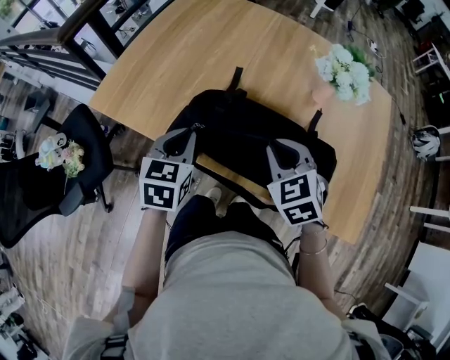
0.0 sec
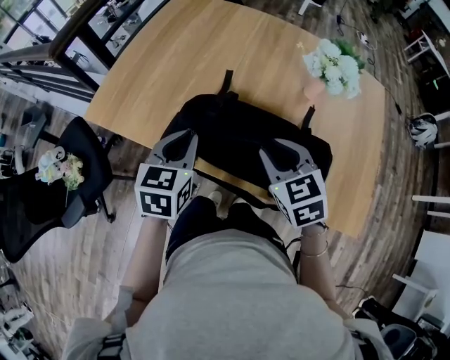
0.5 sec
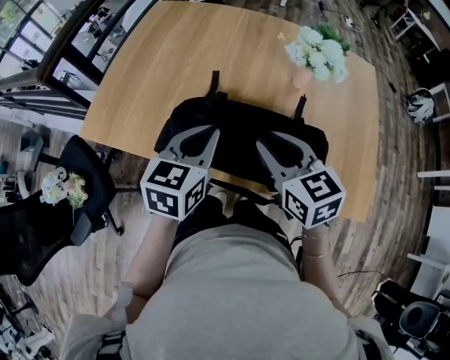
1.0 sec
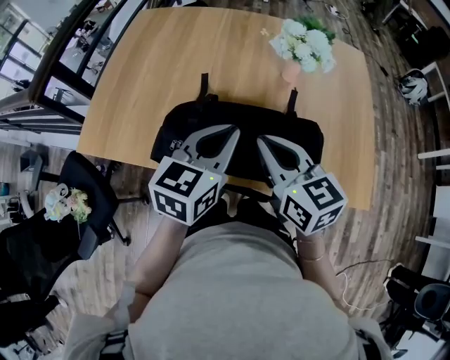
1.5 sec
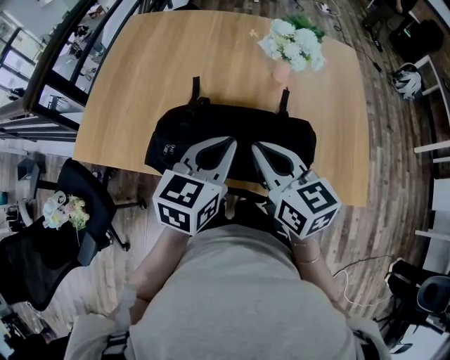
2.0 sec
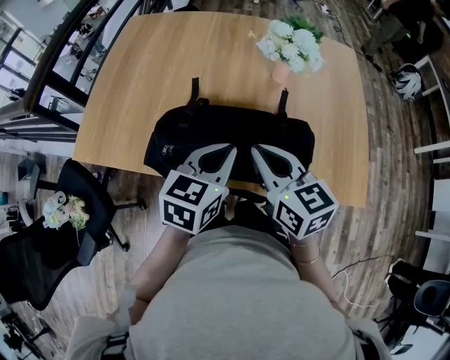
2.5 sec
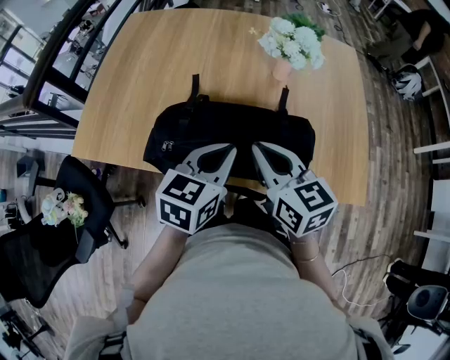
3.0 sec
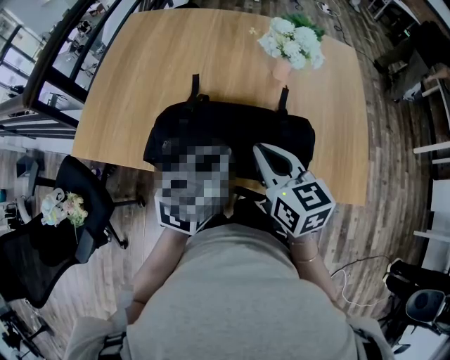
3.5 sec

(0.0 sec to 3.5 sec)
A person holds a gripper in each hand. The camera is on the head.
0.0 sec - 2.0 sec: The right gripper shifts approximately 5 cm upward, and rotates roughly 50 degrees, while the left gripper goes approximately 20 cm to the right and upward, and rotates some 30 degrees.
2.0 sec - 3.5 sec: The grippers move only a little.

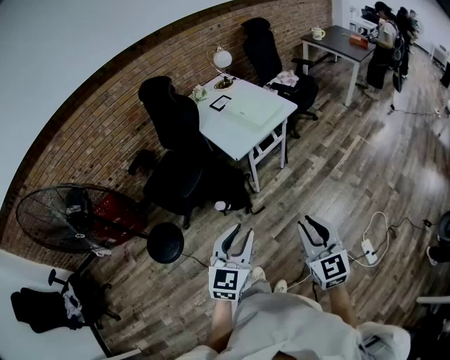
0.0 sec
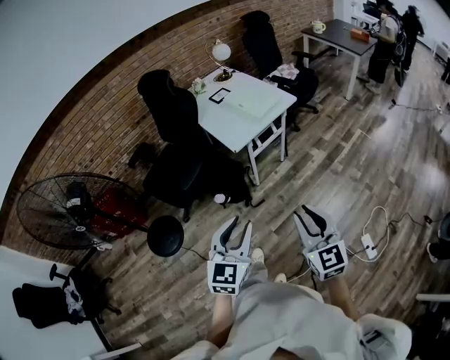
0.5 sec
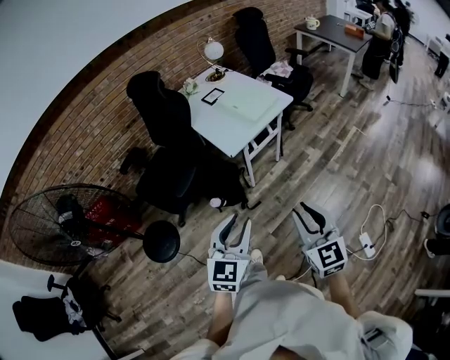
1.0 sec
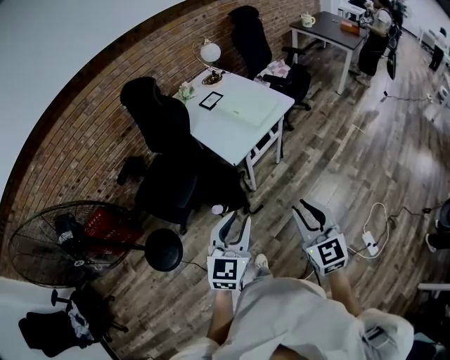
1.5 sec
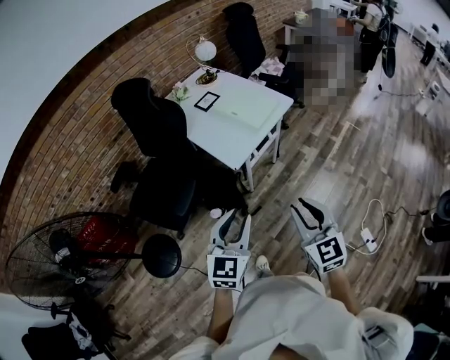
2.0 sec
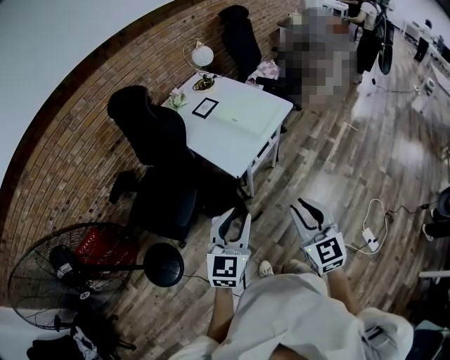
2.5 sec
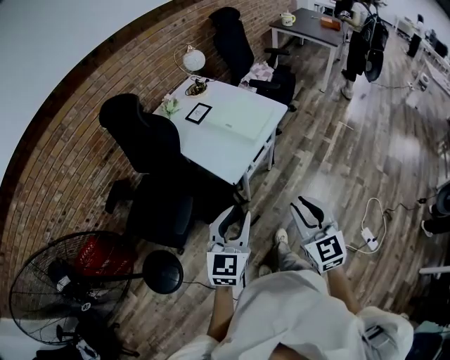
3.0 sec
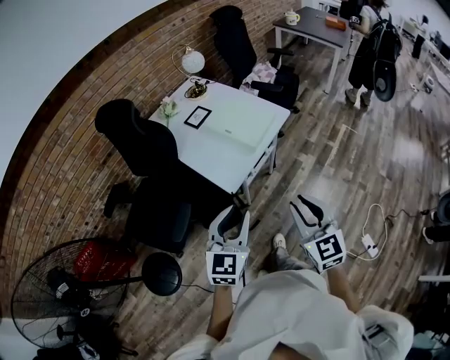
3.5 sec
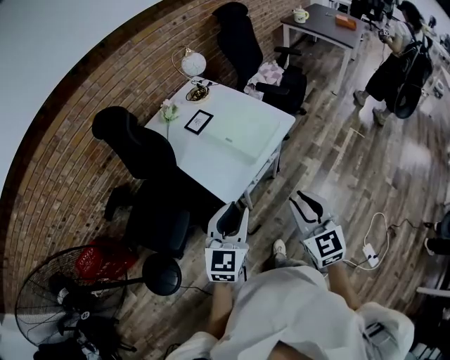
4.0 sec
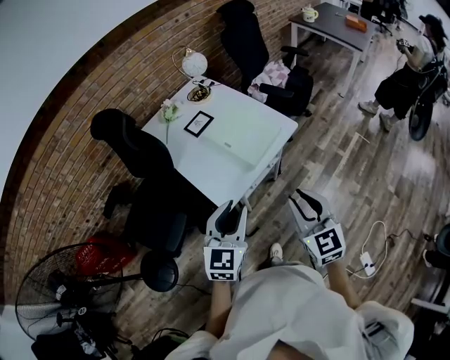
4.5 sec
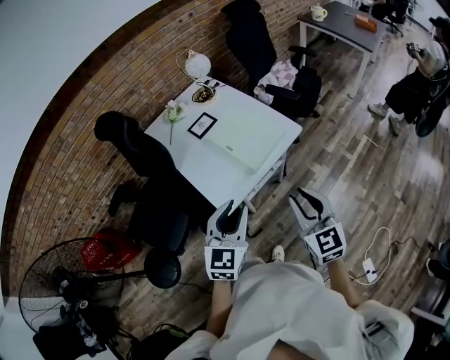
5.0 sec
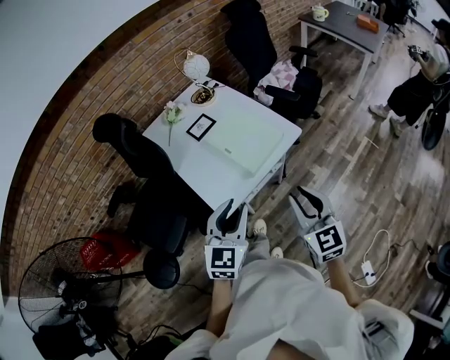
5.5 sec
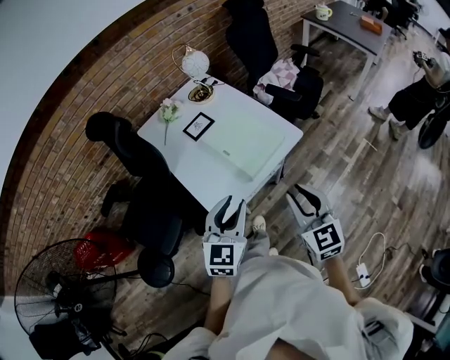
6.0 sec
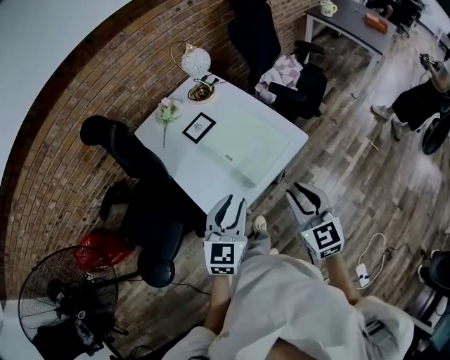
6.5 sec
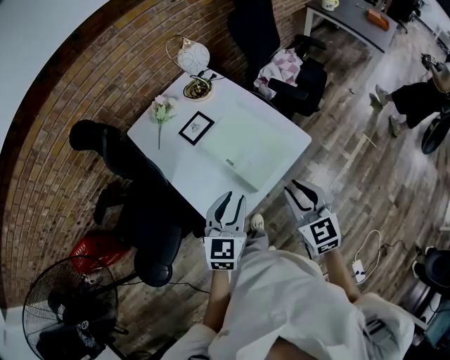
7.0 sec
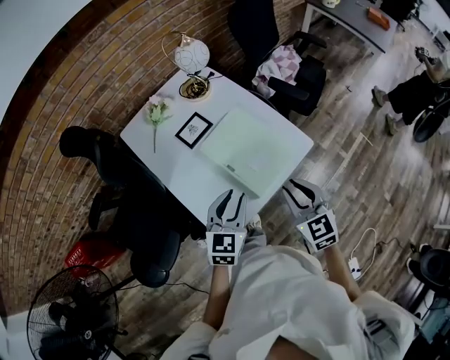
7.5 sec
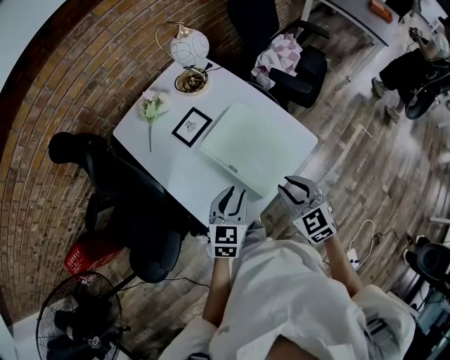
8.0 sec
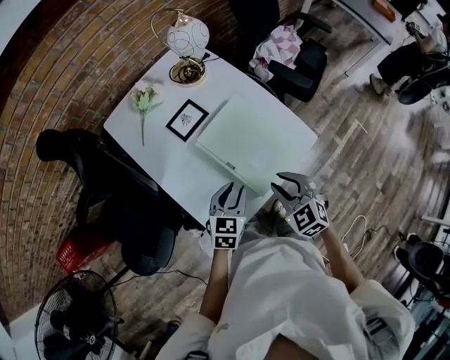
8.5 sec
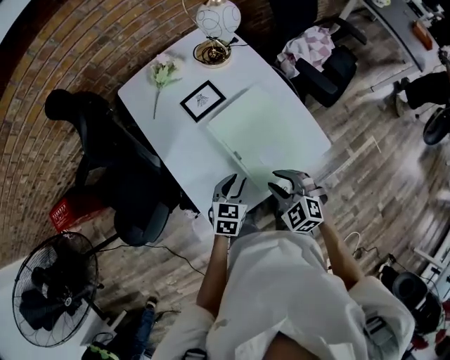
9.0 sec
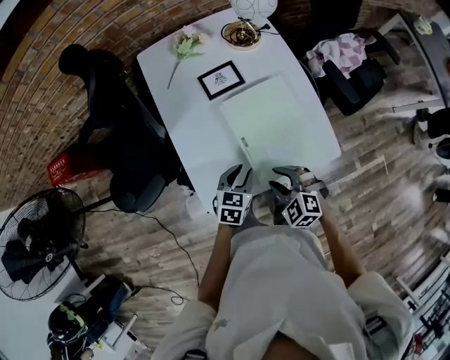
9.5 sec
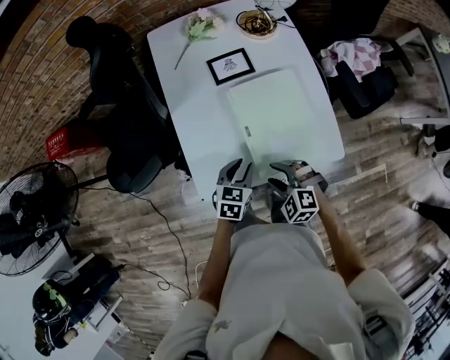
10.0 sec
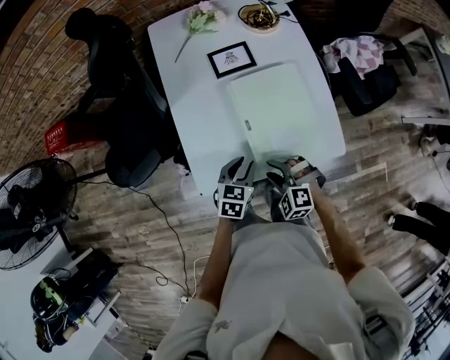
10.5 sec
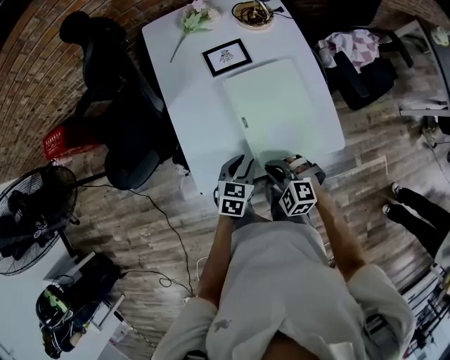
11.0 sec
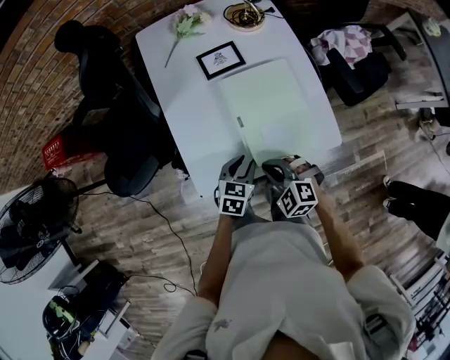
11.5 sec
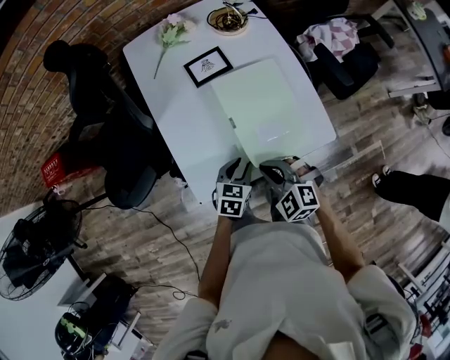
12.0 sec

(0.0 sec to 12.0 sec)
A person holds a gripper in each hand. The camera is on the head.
0.0 sec - 2.0 sec: Both grippers move forward, about 20 cm.
2.0 sec - 4.0 sec: The two grippers go roughly 20 cm forward.
4.0 sec - 6.0 sec: The grippers both shift forward and to the right by some 15 cm.
6.0 sec - 8.0 sec: Both grippers move forward and downward, some 25 cm. The right gripper swivels roughly 20 degrees.
8.0 sec - 10.0 sec: The two grippers go roughly 15 cm downward. The right gripper turns by approximately 70 degrees, and opens. Meanwhile the left gripper changes its angle by about 30 degrees.
10.0 sec - 12.0 sec: The right gripper heads upward, covering about 5 cm, and closes.

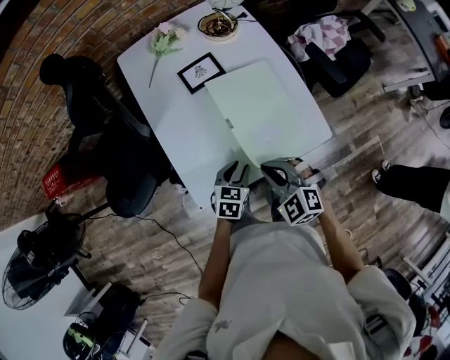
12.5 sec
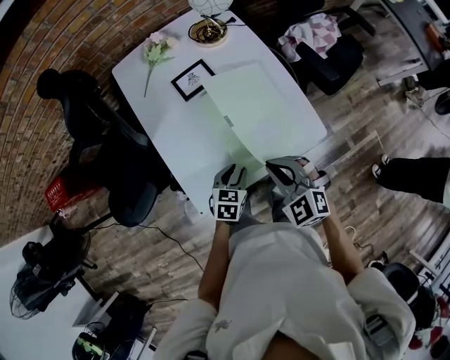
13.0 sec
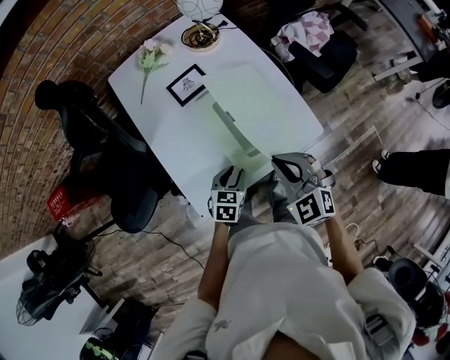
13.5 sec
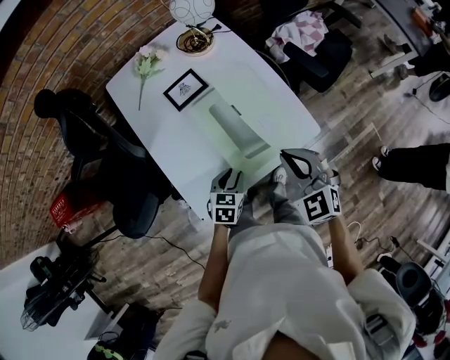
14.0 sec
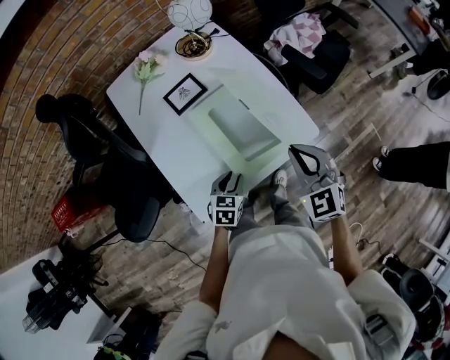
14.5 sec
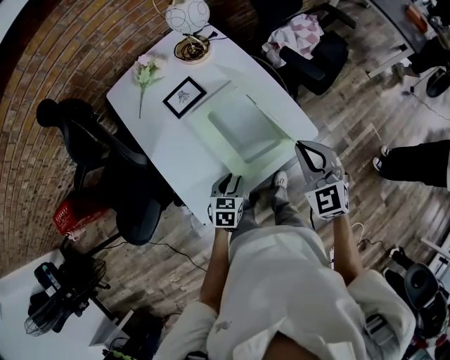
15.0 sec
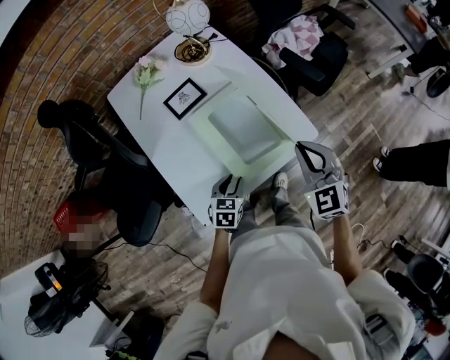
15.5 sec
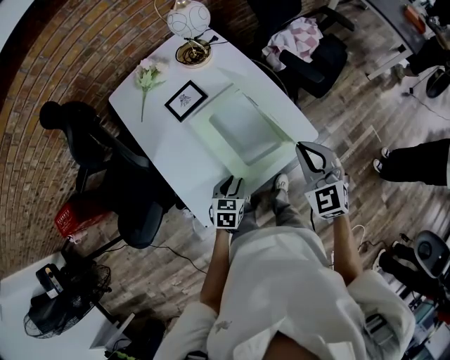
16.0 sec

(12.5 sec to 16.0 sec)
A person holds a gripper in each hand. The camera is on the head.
12.5 sec - 14.5 sec: The right gripper shifts some 15 cm to the right, upward and forward, and turns by roughly 30 degrees.
14.5 sec - 16.0 sec: The grippers make only small movements.

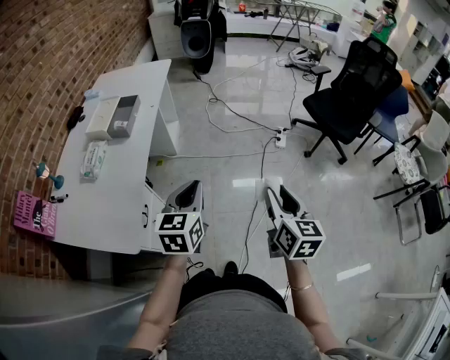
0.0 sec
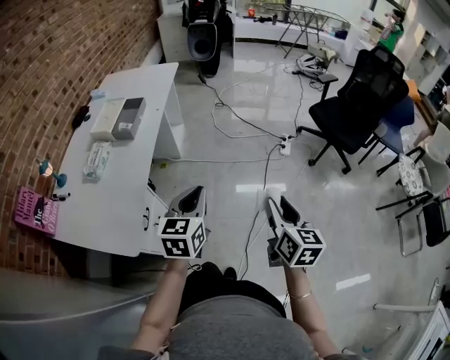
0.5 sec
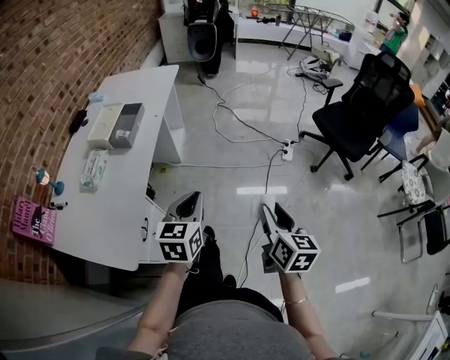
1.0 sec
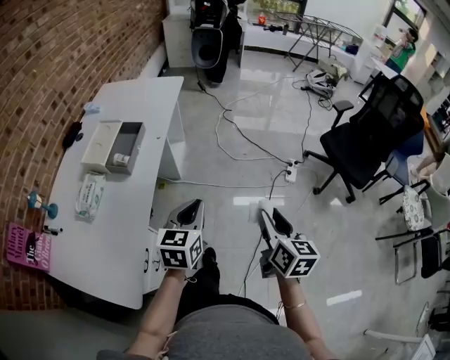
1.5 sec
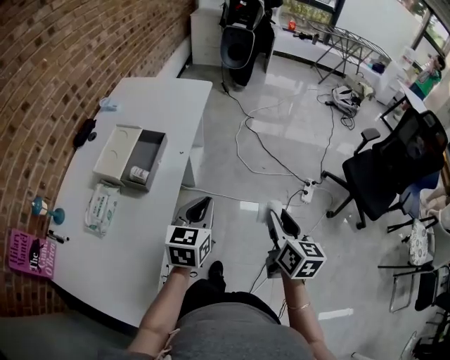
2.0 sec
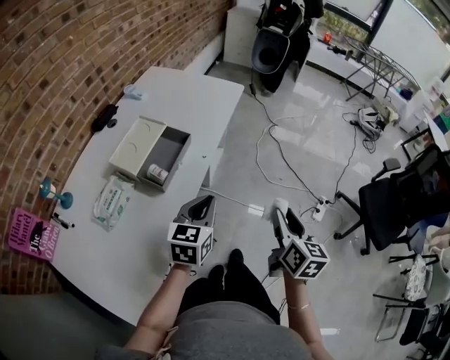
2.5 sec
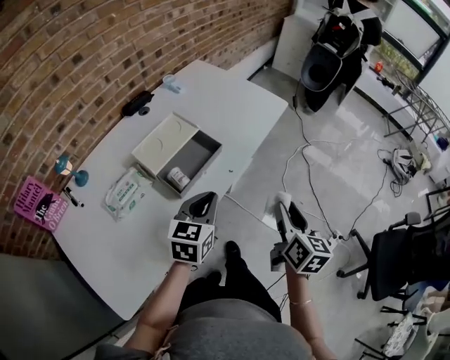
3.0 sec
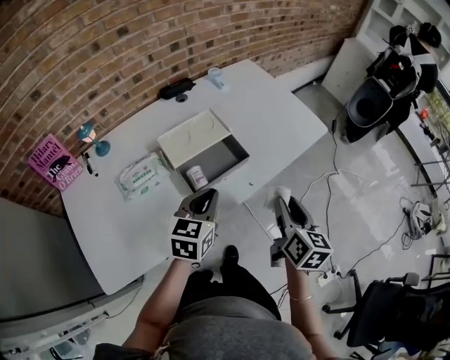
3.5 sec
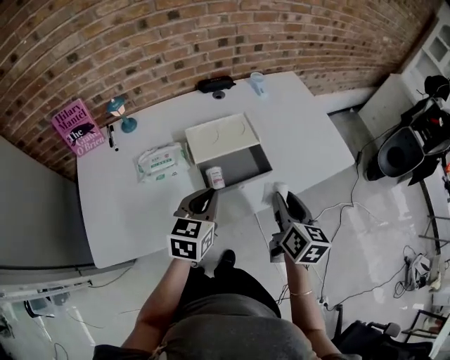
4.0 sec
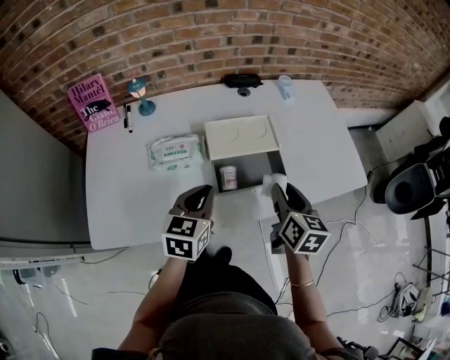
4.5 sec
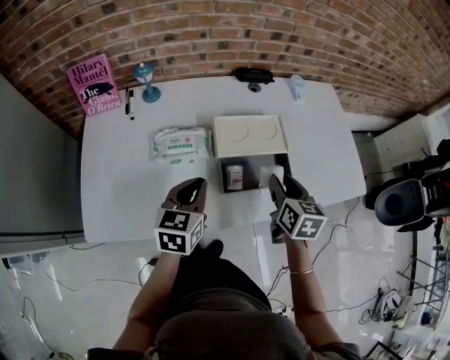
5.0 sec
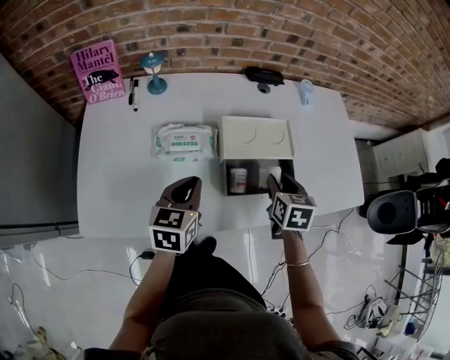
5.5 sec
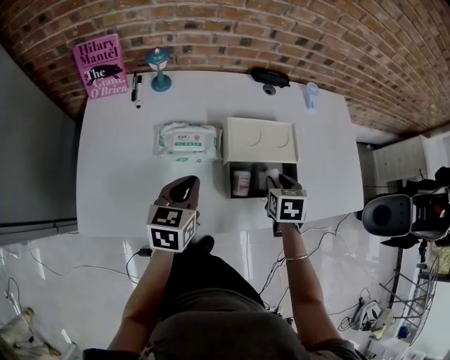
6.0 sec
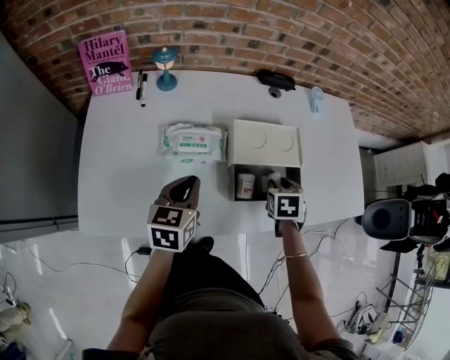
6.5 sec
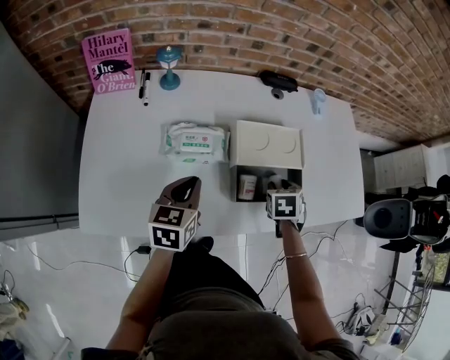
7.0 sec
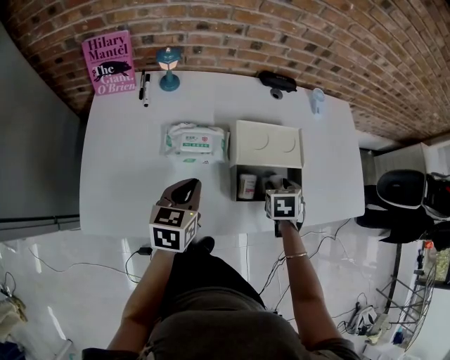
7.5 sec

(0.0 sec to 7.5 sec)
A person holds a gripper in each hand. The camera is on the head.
0.0 sec - 2.0 sec: The right gripper shifts about 35 cm forward and to the left. Meanwhile the left gripper shifts some 30 cm forward.
2.0 sec - 4.0 sec: The right gripper changes place by some 40 cm, and changes its angle by some 60 degrees; the left gripper shifts by approximately 25 cm, and turns by roughly 50 degrees.
4.0 sec - 5.5 sec: The right gripper is displaced forward, to the left and downward by some 15 cm, and rotates about 30 degrees, while the left gripper travels to the left by approximately 10 cm.
5.5 sec - 7.5 sec: The right gripper shifts approximately 5 cm downward, and changes its angle by approximately 20 degrees.
